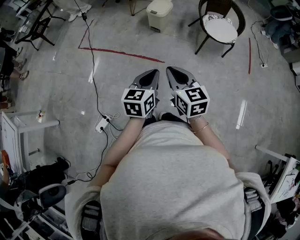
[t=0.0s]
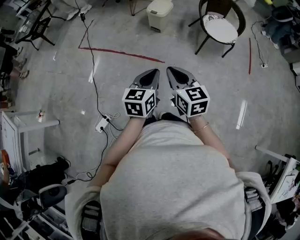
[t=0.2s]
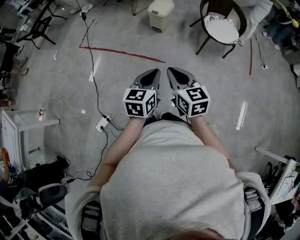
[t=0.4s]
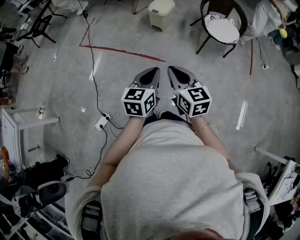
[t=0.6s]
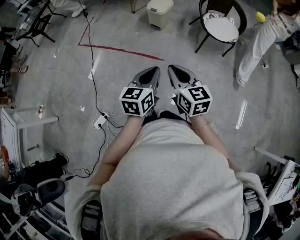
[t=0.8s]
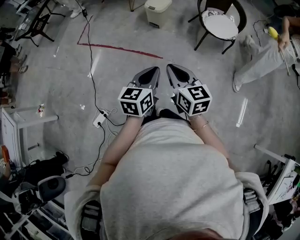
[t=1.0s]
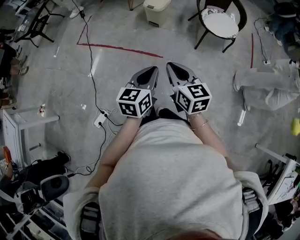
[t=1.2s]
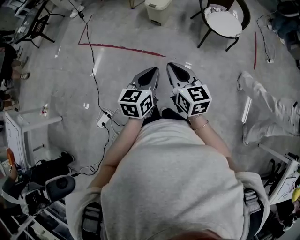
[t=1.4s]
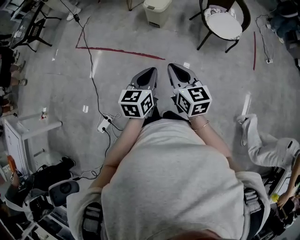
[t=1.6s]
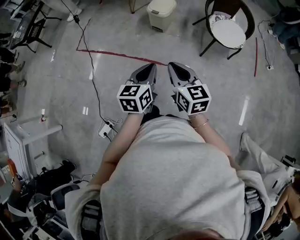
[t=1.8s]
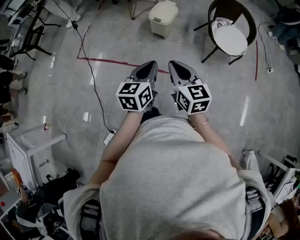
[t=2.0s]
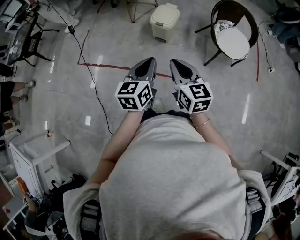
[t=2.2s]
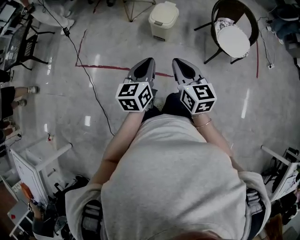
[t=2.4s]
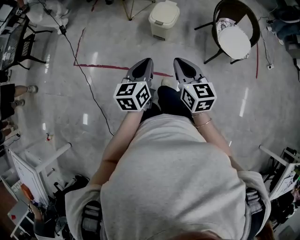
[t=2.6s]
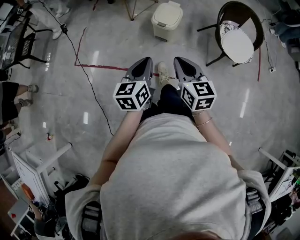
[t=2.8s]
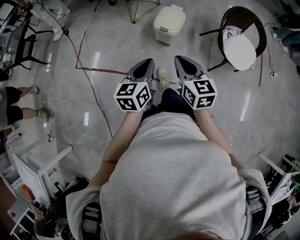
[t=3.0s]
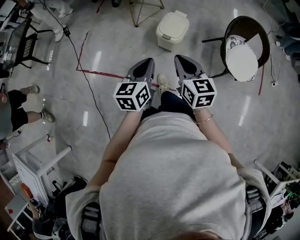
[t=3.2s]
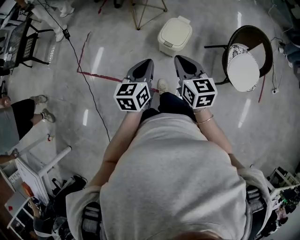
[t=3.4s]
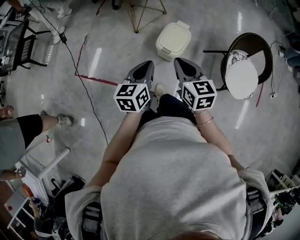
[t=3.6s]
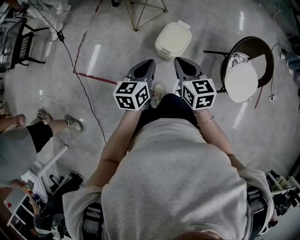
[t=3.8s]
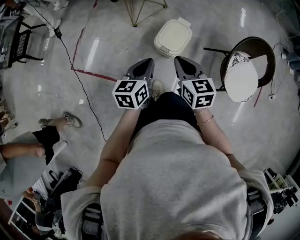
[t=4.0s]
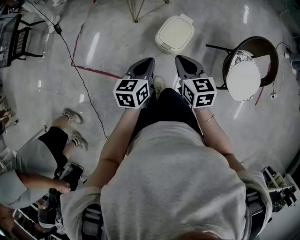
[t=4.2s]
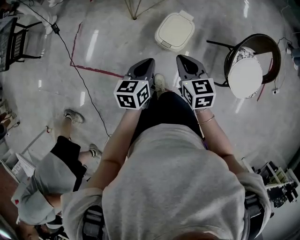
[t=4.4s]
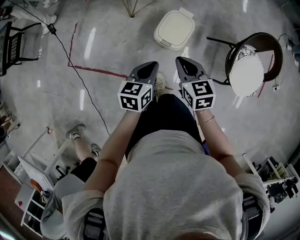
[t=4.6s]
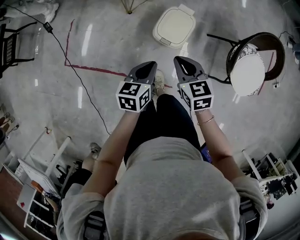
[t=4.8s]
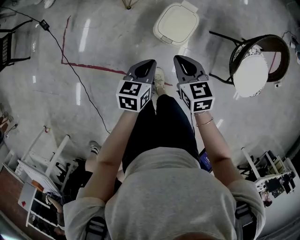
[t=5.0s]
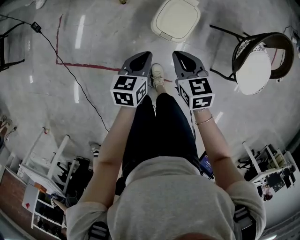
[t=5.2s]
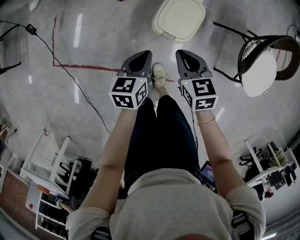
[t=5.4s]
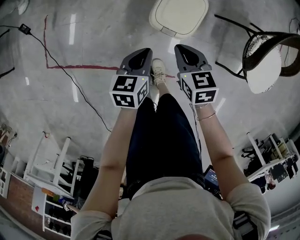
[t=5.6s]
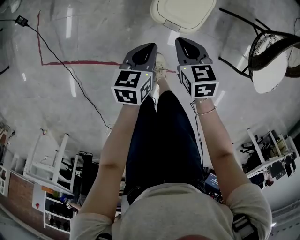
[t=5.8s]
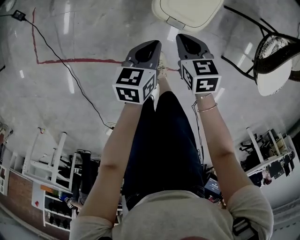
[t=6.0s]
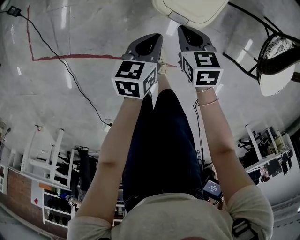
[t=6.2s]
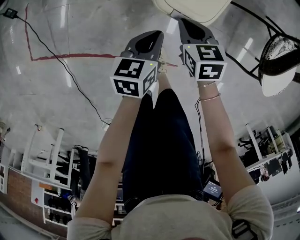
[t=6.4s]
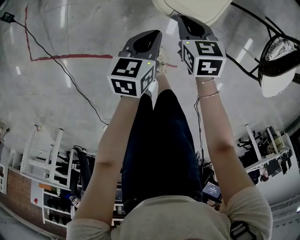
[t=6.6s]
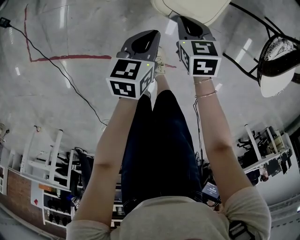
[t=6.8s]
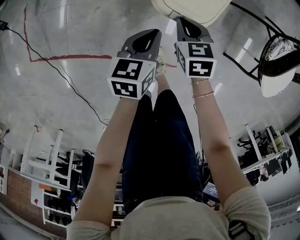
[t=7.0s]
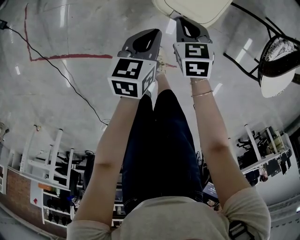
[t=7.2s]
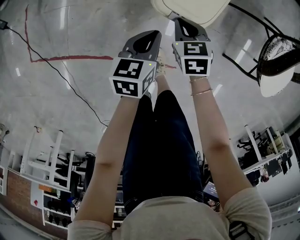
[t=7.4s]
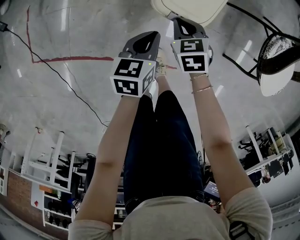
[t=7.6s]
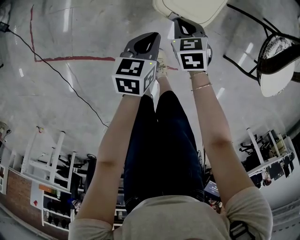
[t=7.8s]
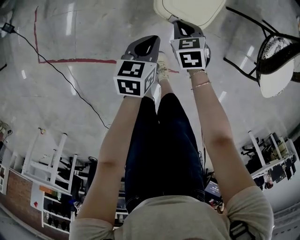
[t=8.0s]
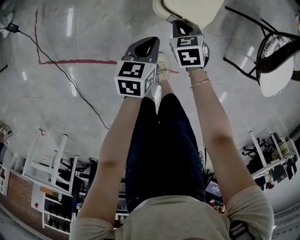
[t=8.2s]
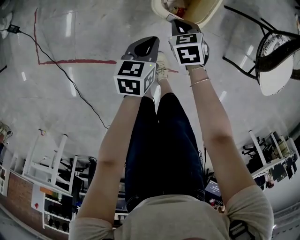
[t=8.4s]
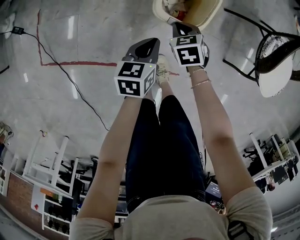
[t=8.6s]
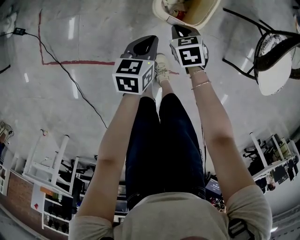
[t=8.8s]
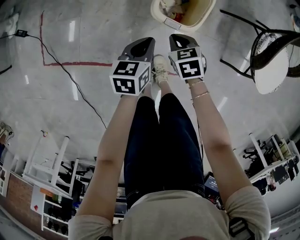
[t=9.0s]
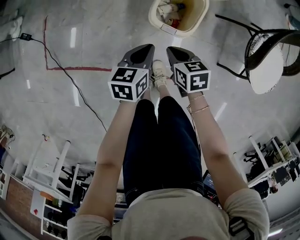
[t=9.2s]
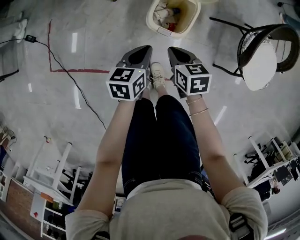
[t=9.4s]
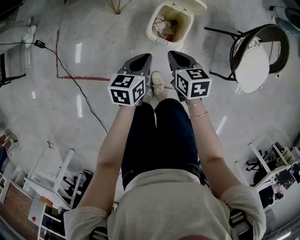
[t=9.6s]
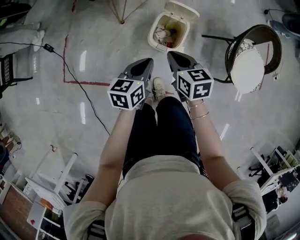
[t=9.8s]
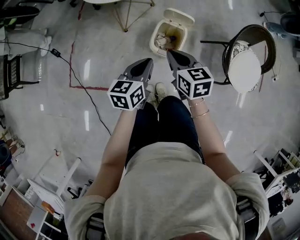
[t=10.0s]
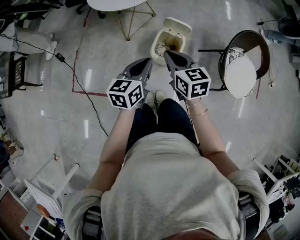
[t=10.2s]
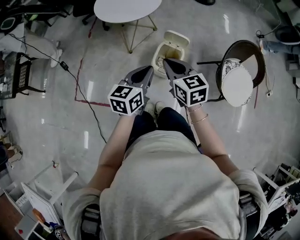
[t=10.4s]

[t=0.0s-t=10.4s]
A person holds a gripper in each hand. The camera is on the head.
t=0.0s to t=1.4s: The right gripper shifts by some 5 cm.
t=1.4s to t=3.0s: The two grippers travel together, forward, approximately 40 cm.
t=3.0s to t=4.4s: Both grippers travel together forward, about 25 cm.
t=4.4s to t=6.0s: The two grippers go some 35 cm downward. The right gripper swivels approximately 20 degrees.
t=6.0s to t=7.4s: The right gripper heads downward, covering some 5 cm.
t=7.4s to t=9.0s: The right gripper shifts by approximately 5 cm; the left gripper heads upward, covering about 5 cm.
t=9.0s to t=10.4s: The grippers both shift upward by some 40 cm. The left gripper swivels roughly 20 degrees; the right gripper tips its fingers upward by roughly 40 degrees.

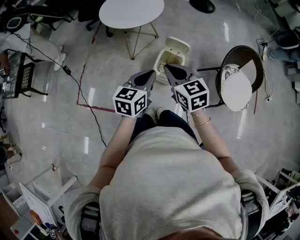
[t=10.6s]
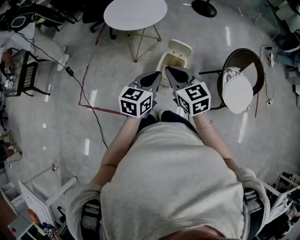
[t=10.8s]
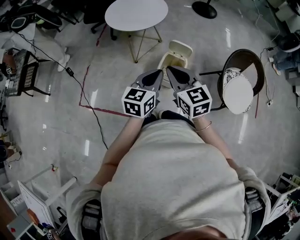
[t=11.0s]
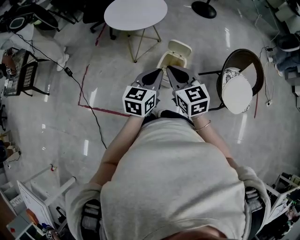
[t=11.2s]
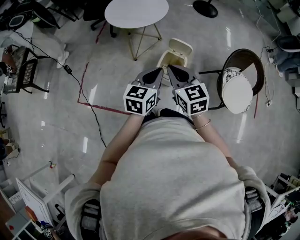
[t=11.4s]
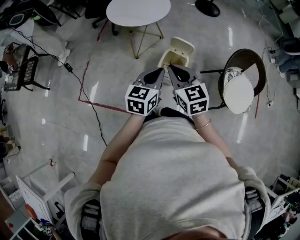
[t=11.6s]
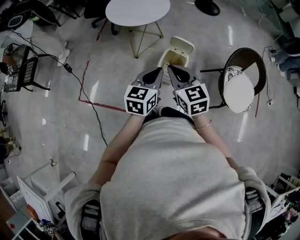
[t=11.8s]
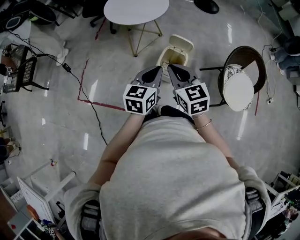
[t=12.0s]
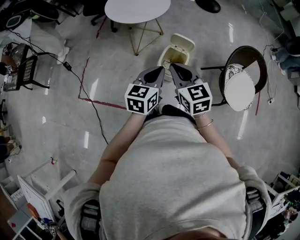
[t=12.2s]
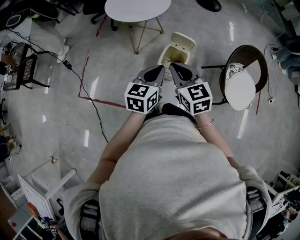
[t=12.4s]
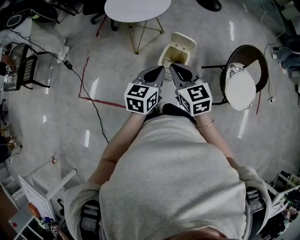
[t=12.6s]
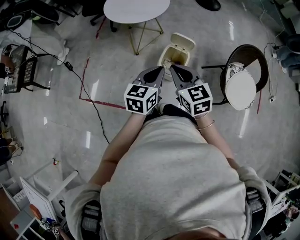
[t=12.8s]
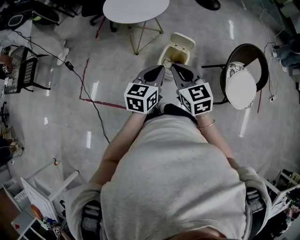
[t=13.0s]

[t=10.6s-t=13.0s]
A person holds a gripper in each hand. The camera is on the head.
t=10.6s to t=11.8s: There are only small adjustments of the grippers.
t=11.8s to t=13.0s: The two grippers keep their place.

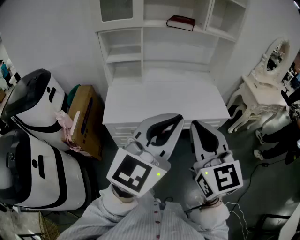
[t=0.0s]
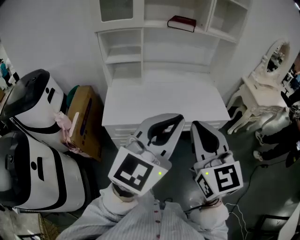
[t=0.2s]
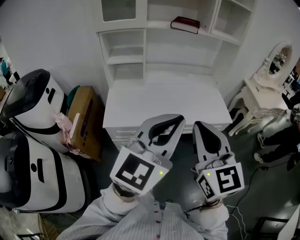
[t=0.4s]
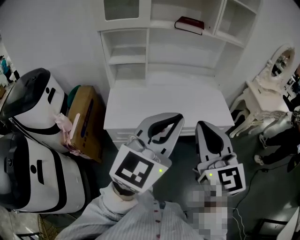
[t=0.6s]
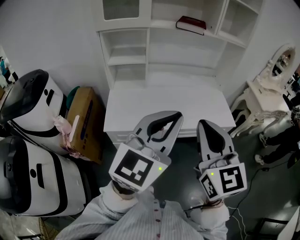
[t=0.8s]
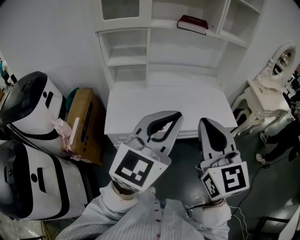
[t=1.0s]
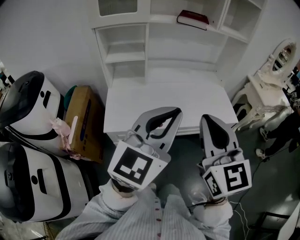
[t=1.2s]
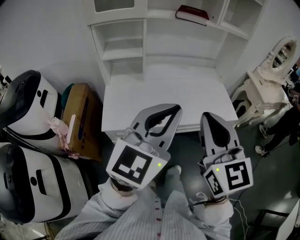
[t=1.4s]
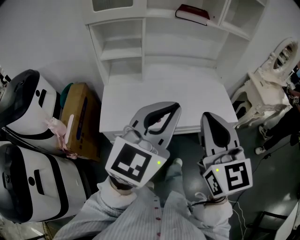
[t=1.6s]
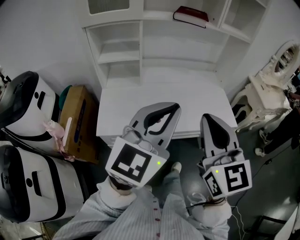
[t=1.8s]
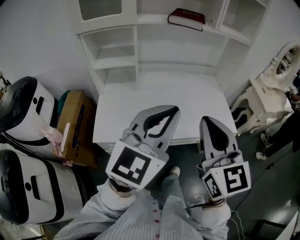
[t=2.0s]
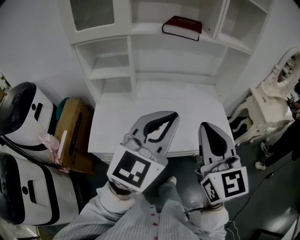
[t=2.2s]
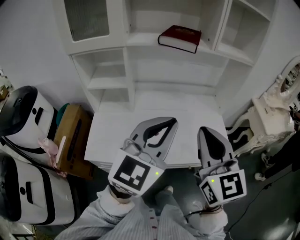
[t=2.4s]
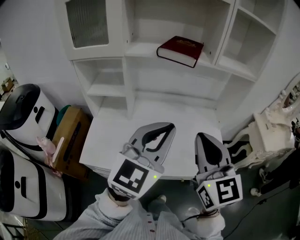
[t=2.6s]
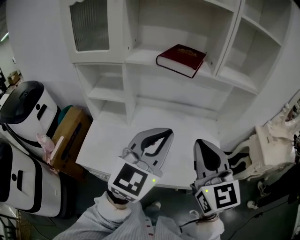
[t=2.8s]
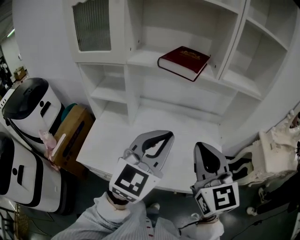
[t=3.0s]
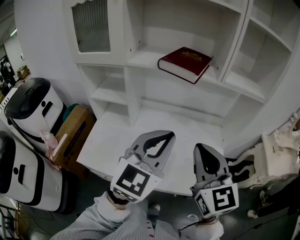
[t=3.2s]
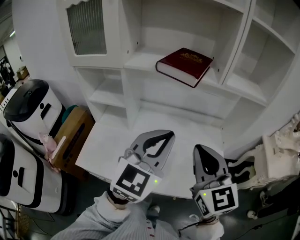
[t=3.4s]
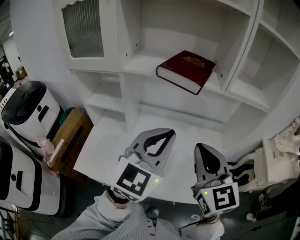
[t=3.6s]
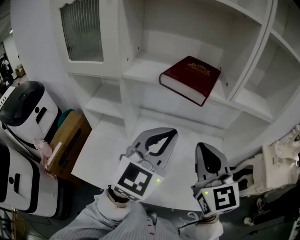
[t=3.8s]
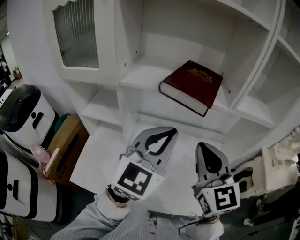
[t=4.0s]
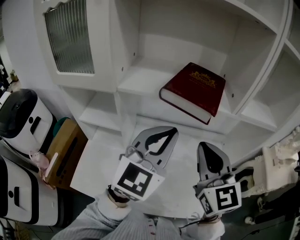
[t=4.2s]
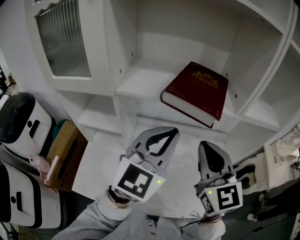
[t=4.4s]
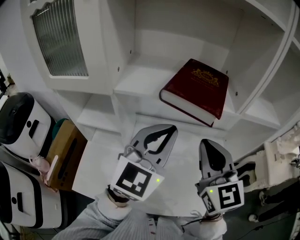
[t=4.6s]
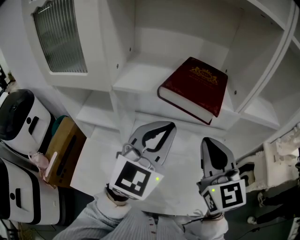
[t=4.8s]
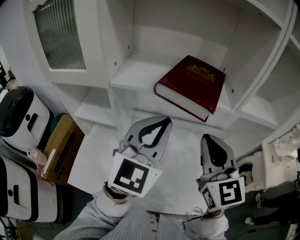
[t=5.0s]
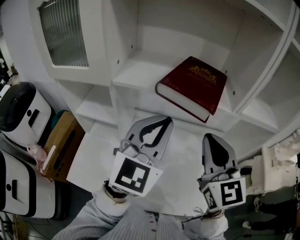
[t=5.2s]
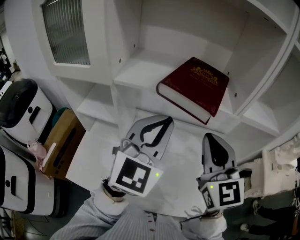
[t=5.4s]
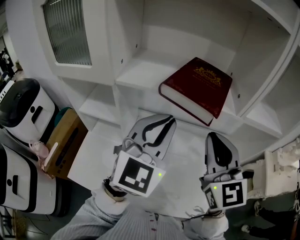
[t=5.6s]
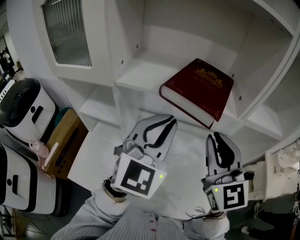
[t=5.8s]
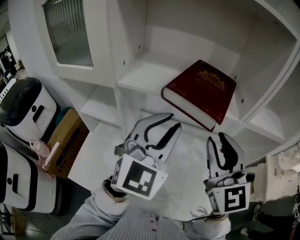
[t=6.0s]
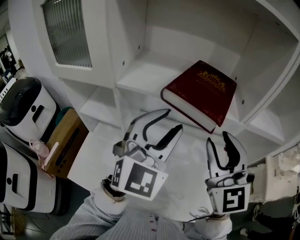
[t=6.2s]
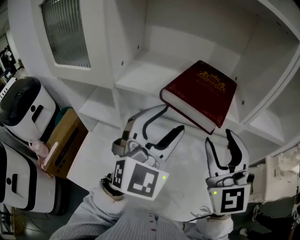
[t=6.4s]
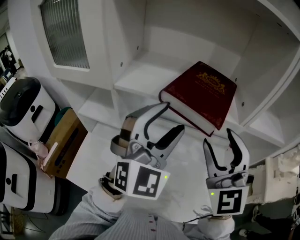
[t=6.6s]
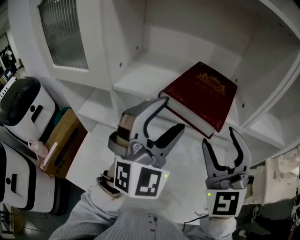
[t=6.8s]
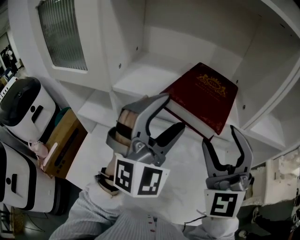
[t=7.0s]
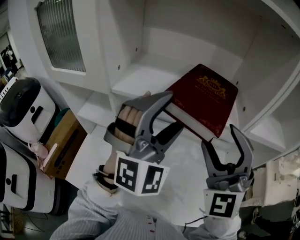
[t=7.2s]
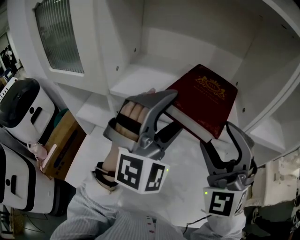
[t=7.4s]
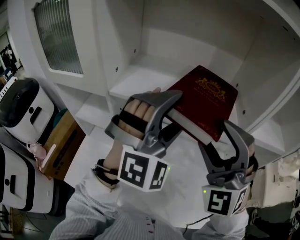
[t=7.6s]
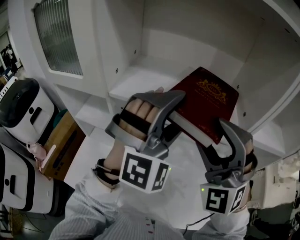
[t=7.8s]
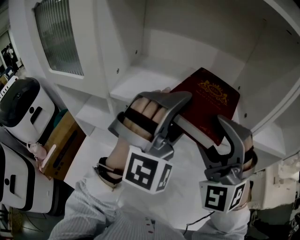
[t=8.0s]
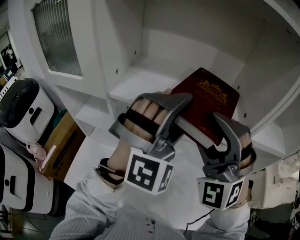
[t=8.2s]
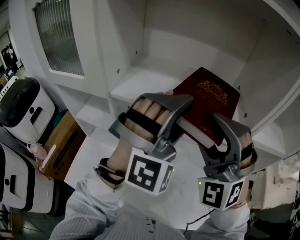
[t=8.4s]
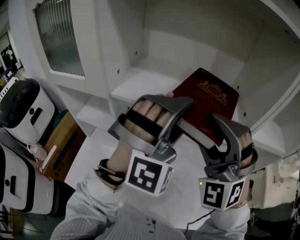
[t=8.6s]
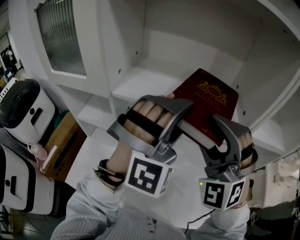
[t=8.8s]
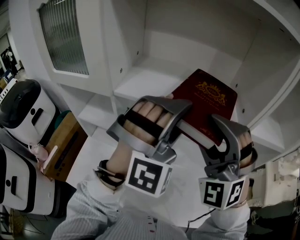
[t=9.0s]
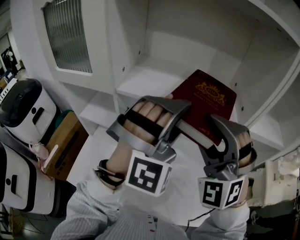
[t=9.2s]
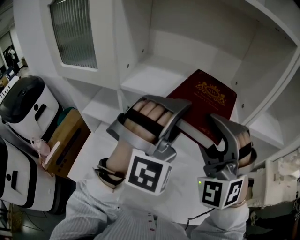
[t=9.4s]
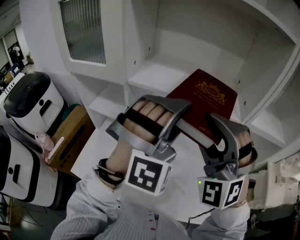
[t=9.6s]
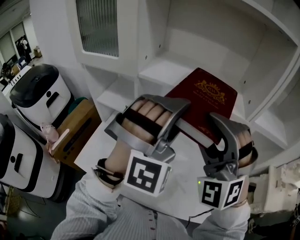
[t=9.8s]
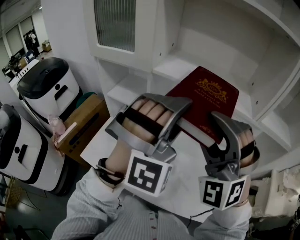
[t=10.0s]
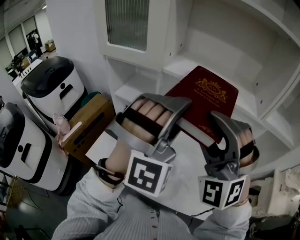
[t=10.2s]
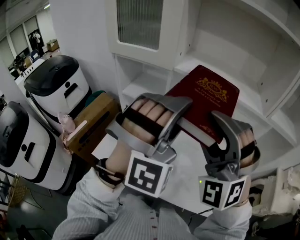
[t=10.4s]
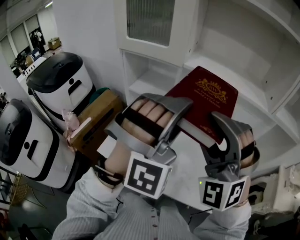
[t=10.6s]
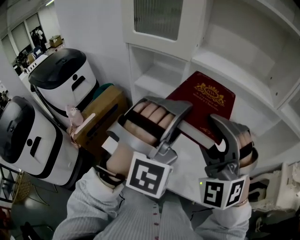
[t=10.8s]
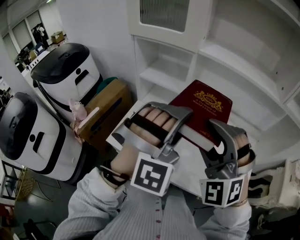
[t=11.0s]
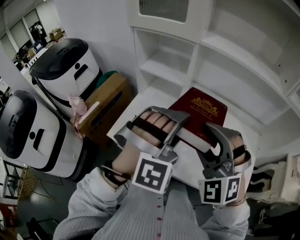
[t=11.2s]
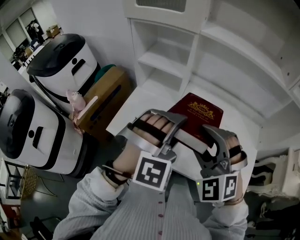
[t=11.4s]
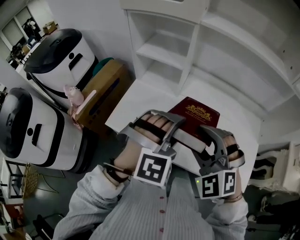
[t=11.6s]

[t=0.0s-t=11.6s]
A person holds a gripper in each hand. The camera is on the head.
t=0.0s to t=1.4s: The right gripper shifts approximately 10 cm forward, while the left gripper moves forward and to the left, about 15 cm.
t=1.4s to t=2.8s: The grippers both shift forward and to the right by roughly 30 cm.
t=2.8s to t=4.4s: The two grippers go some 20 cm forward.
t=4.4s to t=5.8s: There are only small adjustments of the grippers.
t=5.8s to t=7.2s: The right gripper changes its angle by approximately 40 degrees, and opens its fingers. The left gripper moves roughly 5 cm, changes its angle by some 40 degrees, and opens.
t=7.2s to t=8.8s: The right gripper rotates approximately 20 degrees.
t=8.8s to t=10.2s: The grippers both shift backward and to the left by approximately 15 cm.
t=10.2s to t=11.6s: Both grippers travel together downward, to the left and backward, roughly 25 cm. The right gripper swivels some 30 degrees, while the left gripper rotates about 30 degrees.
